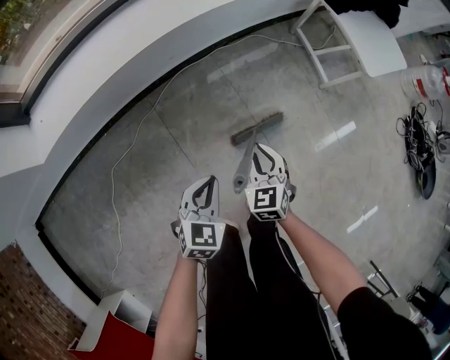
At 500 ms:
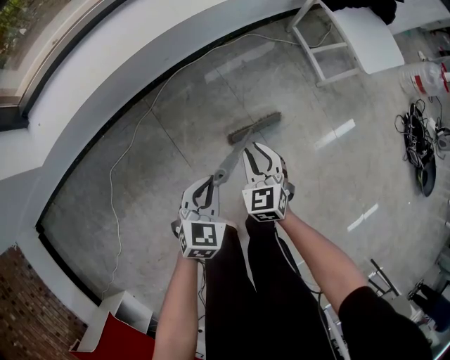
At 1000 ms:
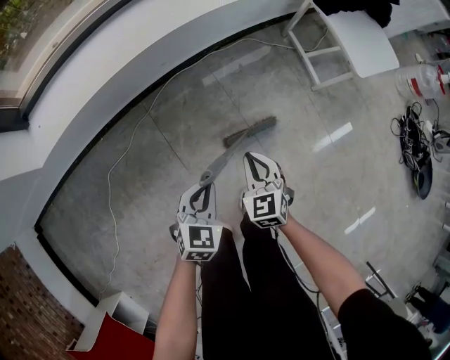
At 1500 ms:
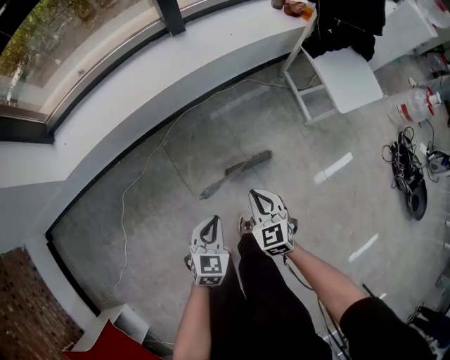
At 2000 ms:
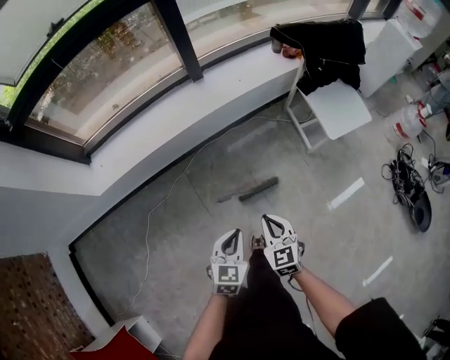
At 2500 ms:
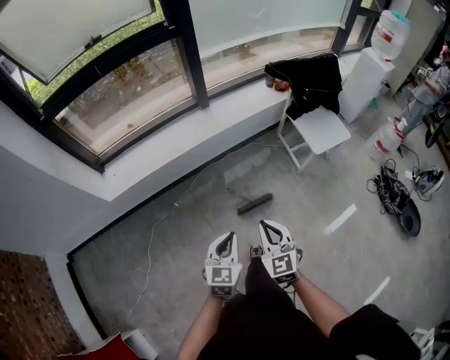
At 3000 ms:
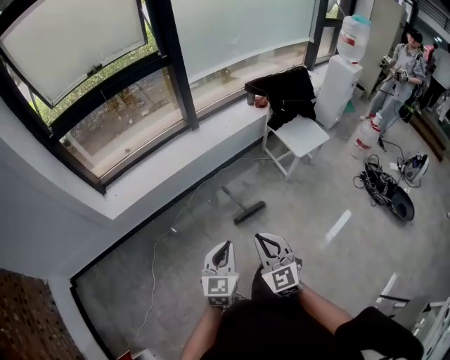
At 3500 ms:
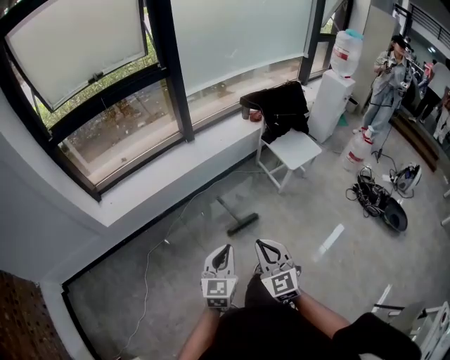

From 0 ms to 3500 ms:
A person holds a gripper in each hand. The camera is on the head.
From 0 ms to 2000 ms: The two grippers go roughly 25 cm upward.
From 2000 ms to 3500 ms: The grippers both shift upward and backward by some 30 cm. The left gripper turns by some 20 degrees; the right gripper changes its angle by some 20 degrees.

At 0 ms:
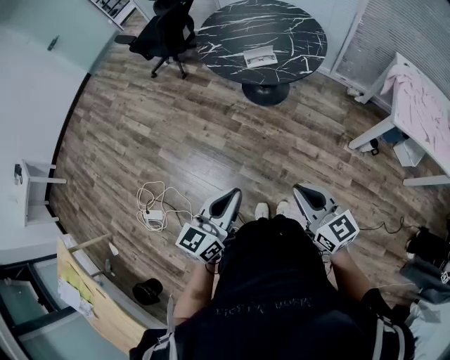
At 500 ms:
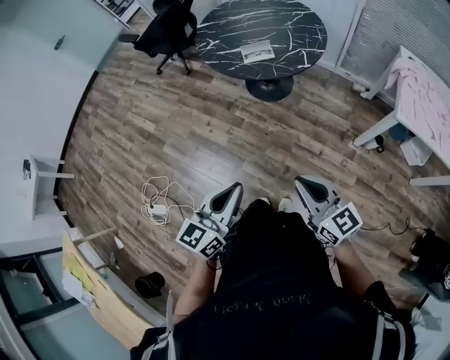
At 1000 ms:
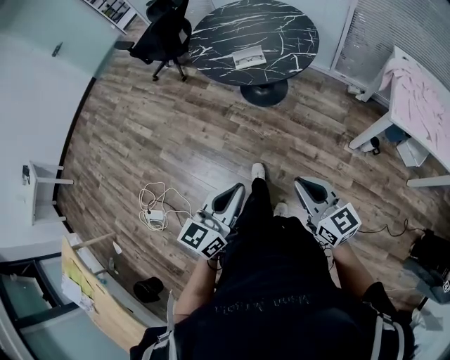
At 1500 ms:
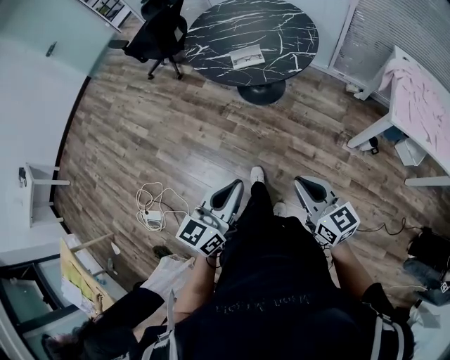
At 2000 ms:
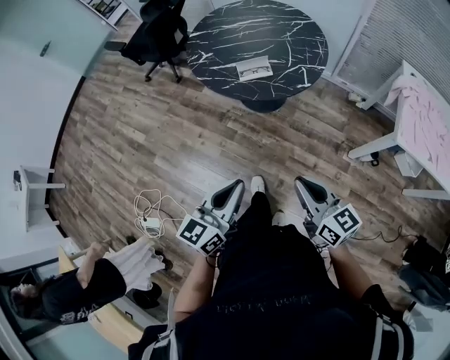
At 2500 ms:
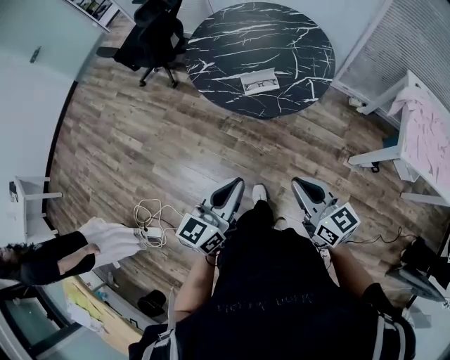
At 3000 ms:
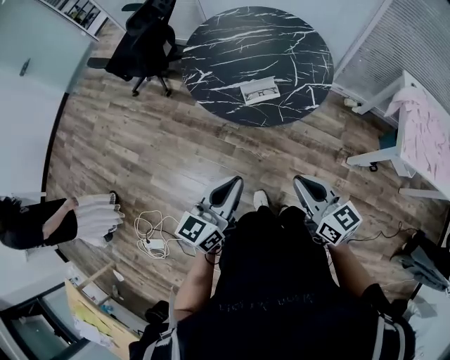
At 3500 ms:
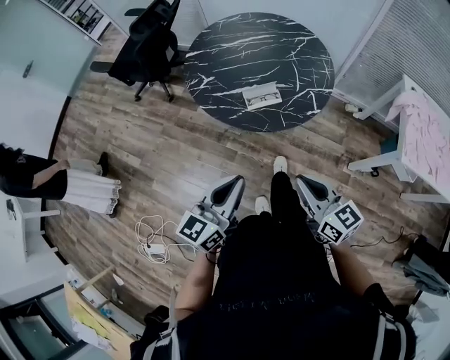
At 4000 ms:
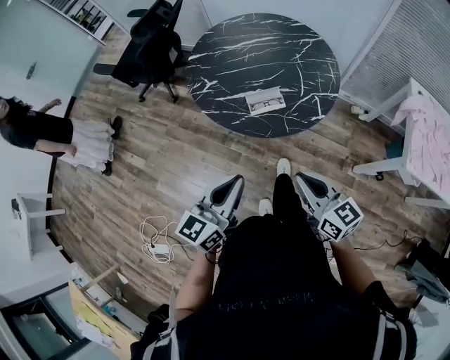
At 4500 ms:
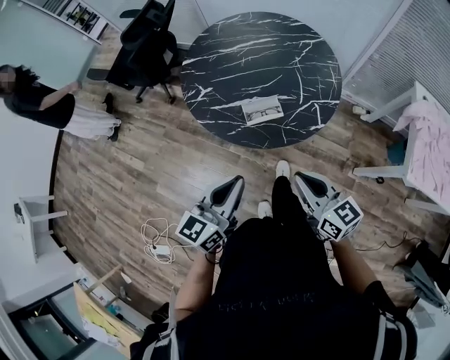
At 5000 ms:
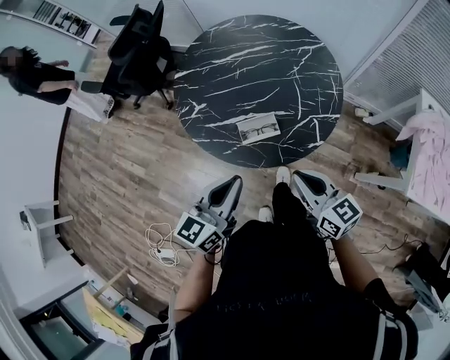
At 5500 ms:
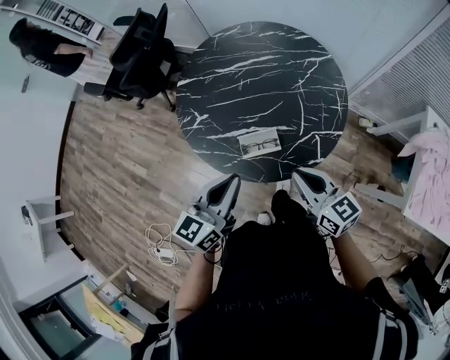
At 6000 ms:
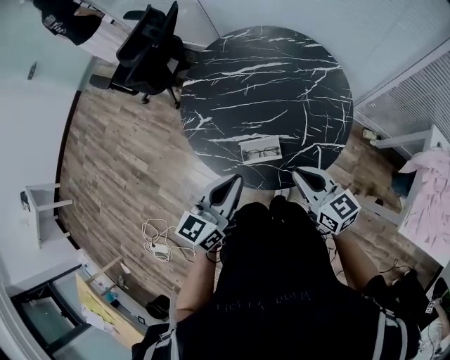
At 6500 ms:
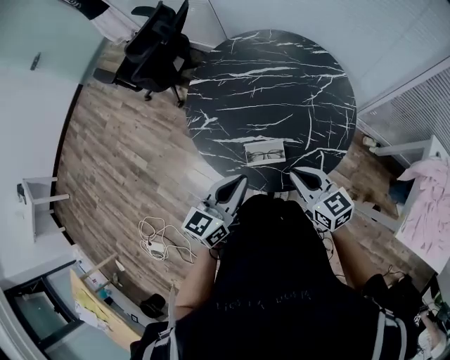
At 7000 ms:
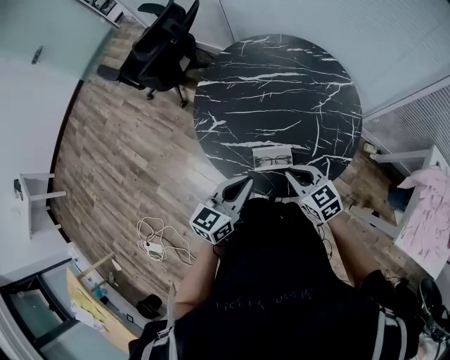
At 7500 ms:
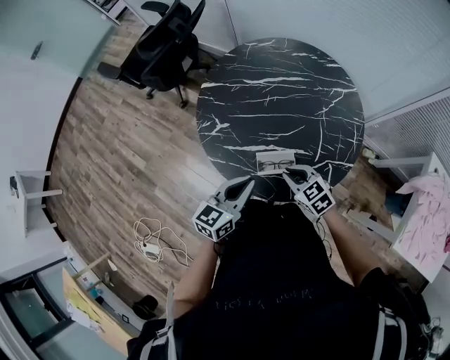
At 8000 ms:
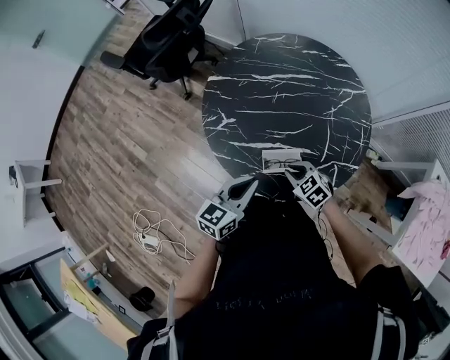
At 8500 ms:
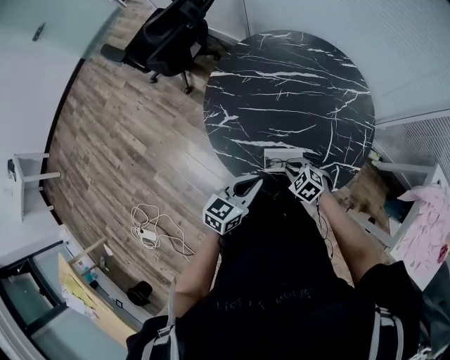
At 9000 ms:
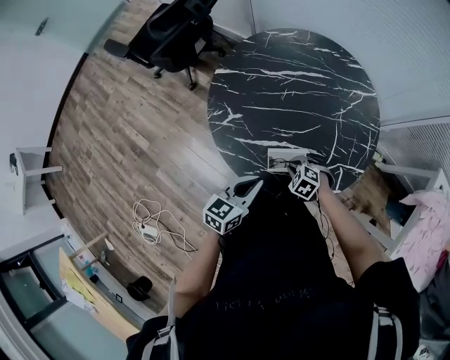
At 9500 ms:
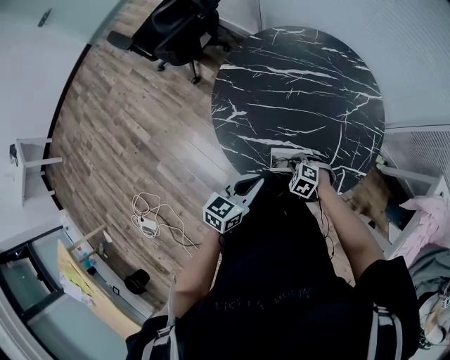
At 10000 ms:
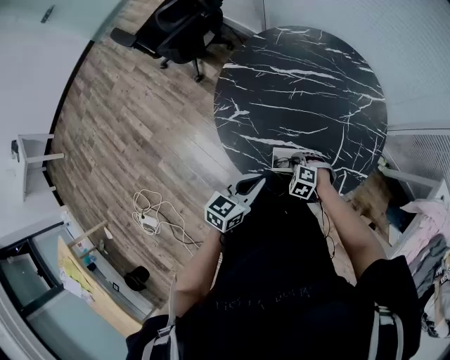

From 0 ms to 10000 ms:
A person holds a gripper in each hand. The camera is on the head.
From 0 ms to 2000 ms: Both grippers travel together forward and to the right, roughly 15 cm.
From 2000 ms to 4000 ms: The grippers both shift forward by about 20 cm.
From 4000 ms to 6000 ms: The two grippers go roughly 25 cm forward.
From 6000 ms to 8000 ms: The right gripper heads downward and to the left, covering roughly 20 cm, and points its fingers some 40 degrees further downward; the left gripper heads downward and to the left, covering approximately 10 cm.
From 8000 ms to 10000 ms: The right gripper travels downward by approximately 10 cm, and rotates some 40 degrees.

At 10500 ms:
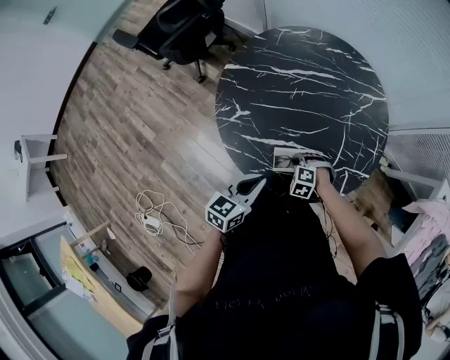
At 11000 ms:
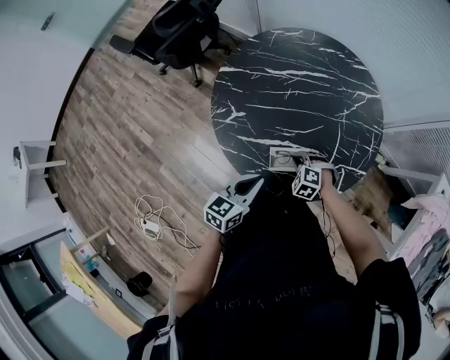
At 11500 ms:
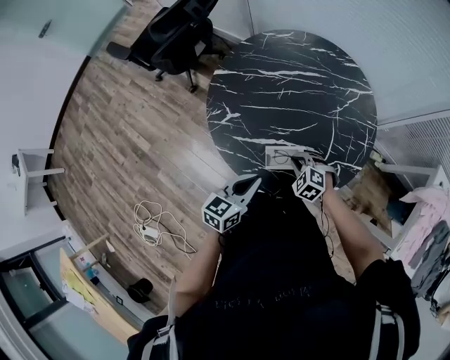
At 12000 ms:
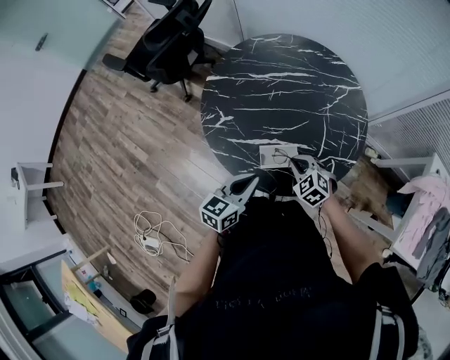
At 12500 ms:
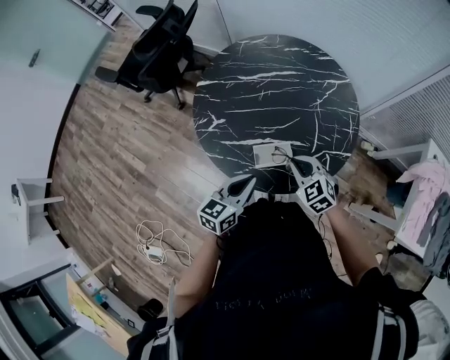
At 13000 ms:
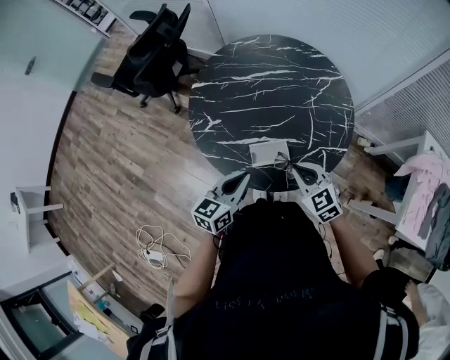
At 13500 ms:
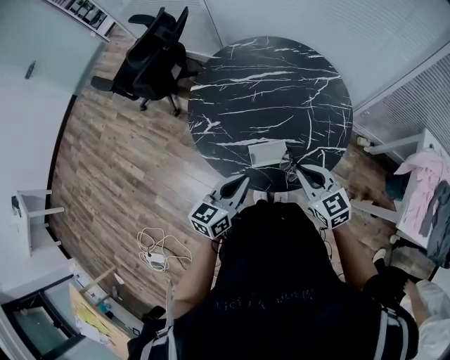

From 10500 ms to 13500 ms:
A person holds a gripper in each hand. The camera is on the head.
From 10500 ms to 12000 ms: The right gripper goes some 10 cm upward, and changes its angle by some 40 degrees.
From 12000 ms to 13500 ms: The right gripper is displaced upward by roughly 15 cm, and turns by approximately 40 degrees.

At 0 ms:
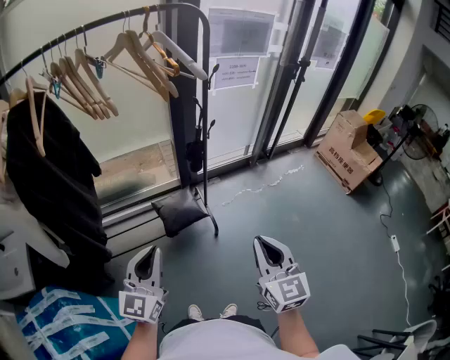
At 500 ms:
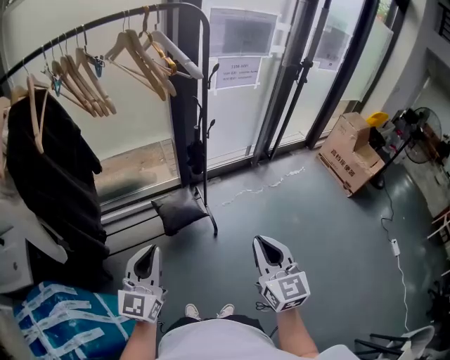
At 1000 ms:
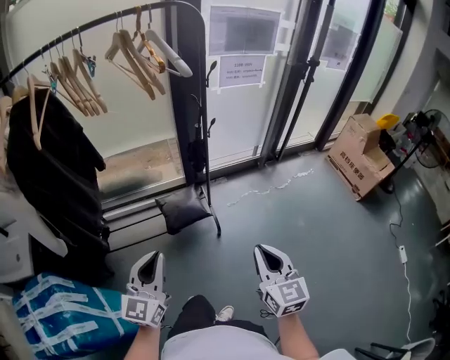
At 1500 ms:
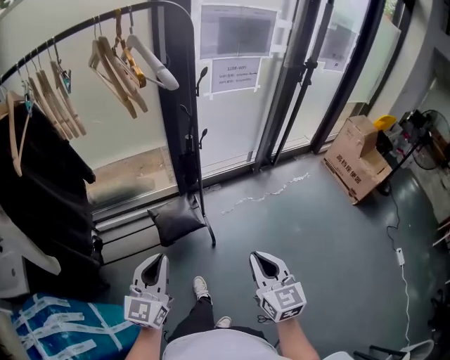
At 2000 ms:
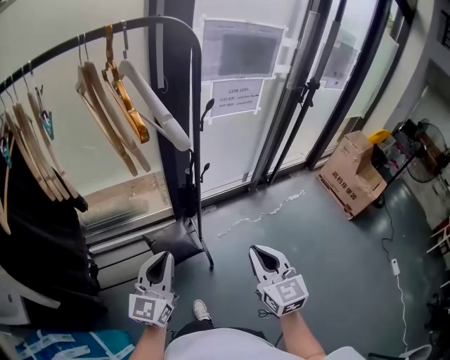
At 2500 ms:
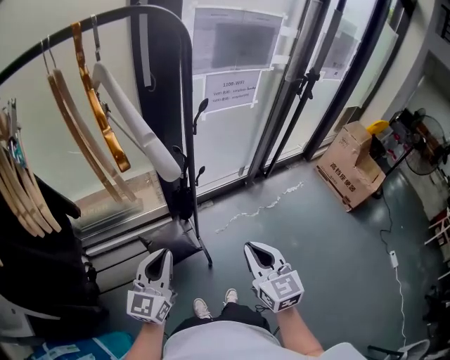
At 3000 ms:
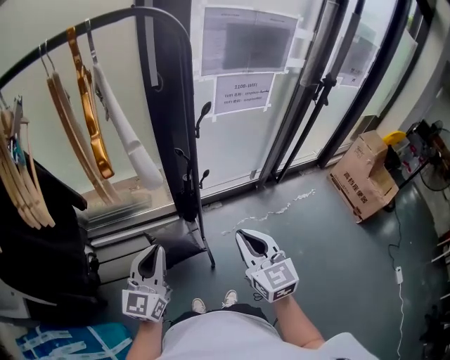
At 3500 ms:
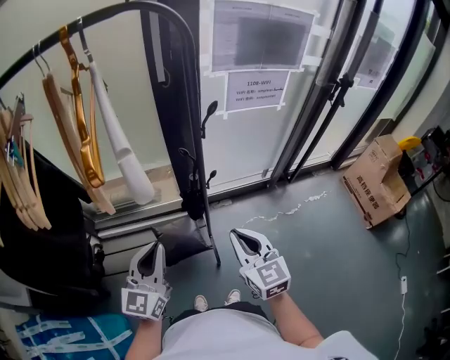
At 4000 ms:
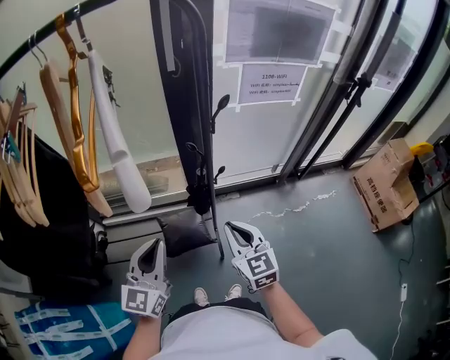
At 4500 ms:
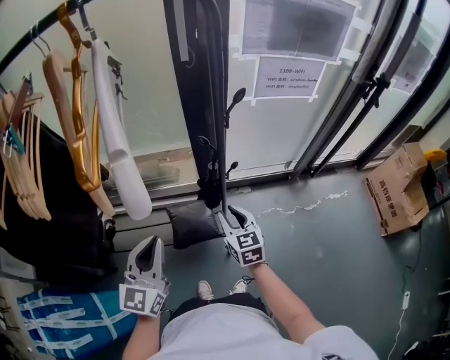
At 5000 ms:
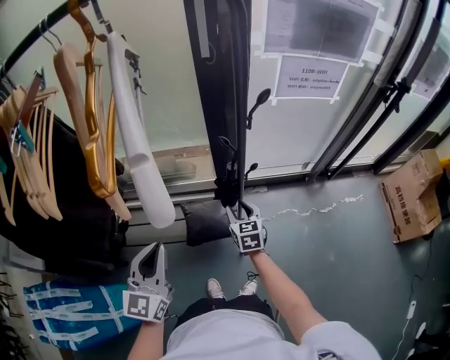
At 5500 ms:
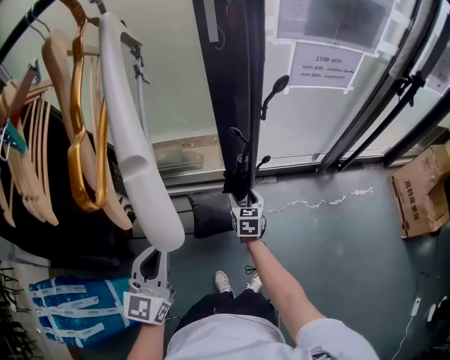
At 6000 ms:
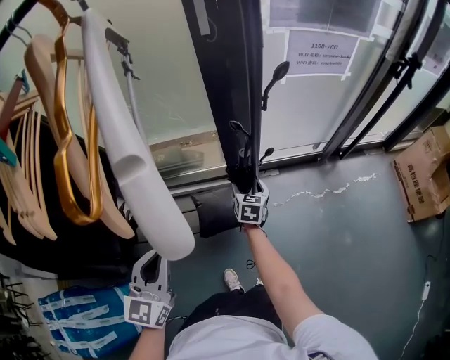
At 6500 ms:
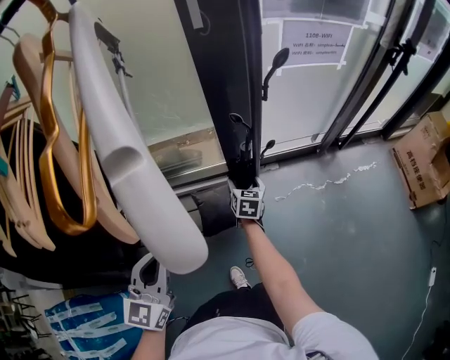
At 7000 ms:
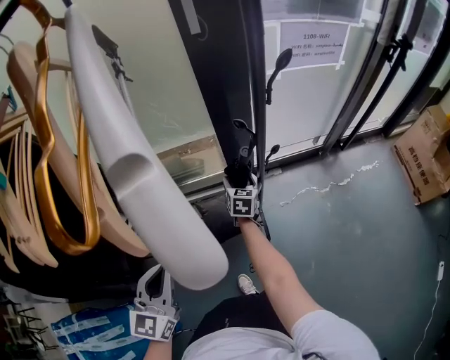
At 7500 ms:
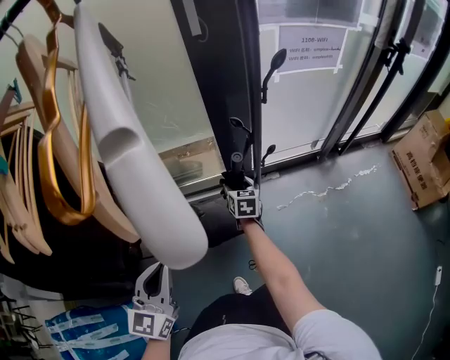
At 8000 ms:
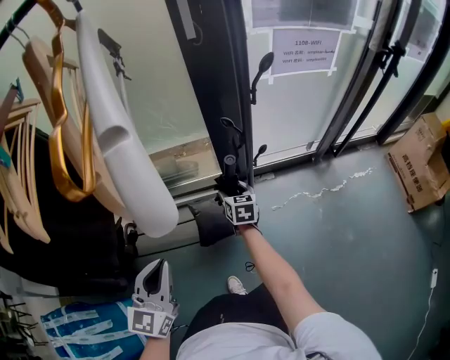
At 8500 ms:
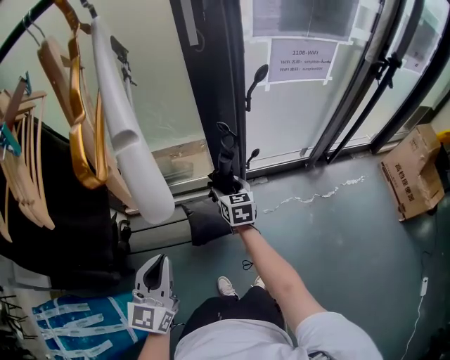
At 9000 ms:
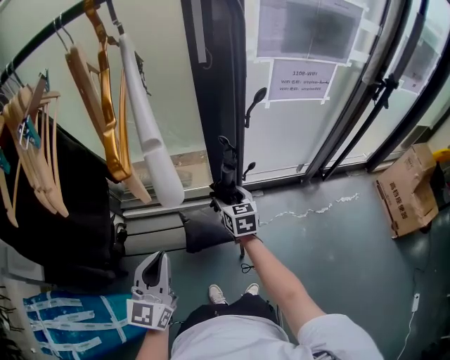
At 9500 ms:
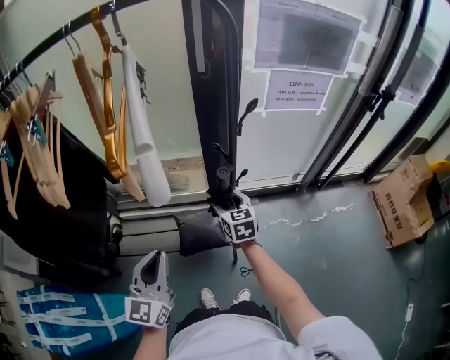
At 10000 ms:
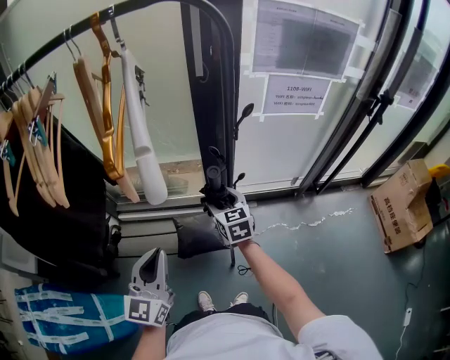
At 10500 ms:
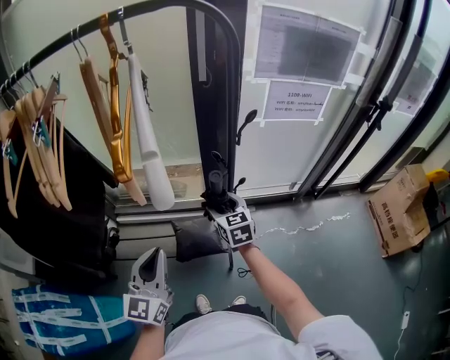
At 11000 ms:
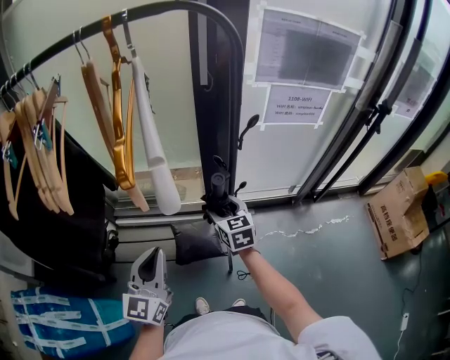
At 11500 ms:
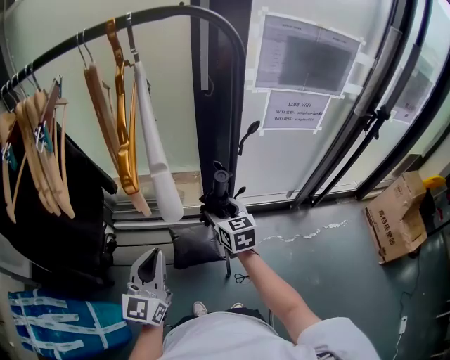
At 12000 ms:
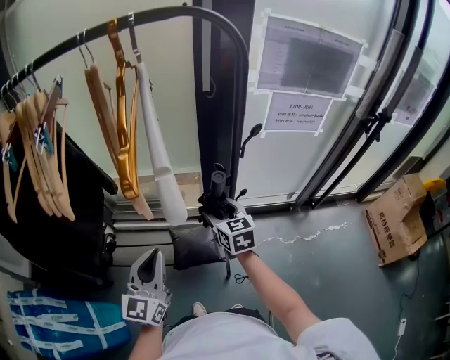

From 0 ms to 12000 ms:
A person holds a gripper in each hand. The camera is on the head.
From 0 ms to 2000 ms: The grippers both shift forward by some 20 cm.
From 2000 ms to 4000 ms: The left gripper is displaced forward by roughly 10 cm. The right gripper moves forward, approximately 20 cm.
From 4000 ms to 6000 ms: The left gripper moves to the left, roughly 10 cm, while the right gripper moves downward and forward, about 30 cm, changes its angle by approximately 30 degrees, and opens up.
From 6000 ms to 8000 ms: The right gripper ends up approximately 5 cm from where it was.
From 8000 ms to 10000 ms: The right gripper heads upward, covering about 20 cm, and swivels approximately 20 degrees. Meanwhile the left gripper moves upward and to the right, some 10 cm.
From 10000 ms to 12000 ms: The grippers move only a little.
